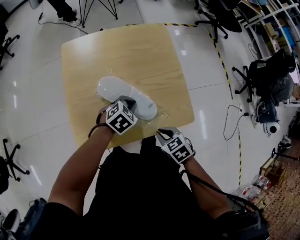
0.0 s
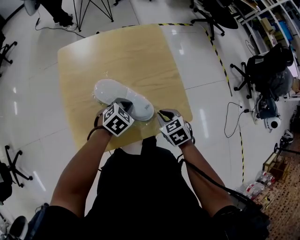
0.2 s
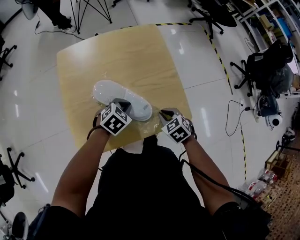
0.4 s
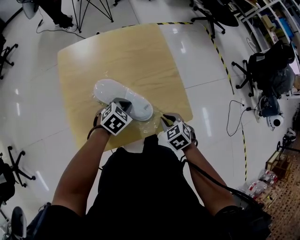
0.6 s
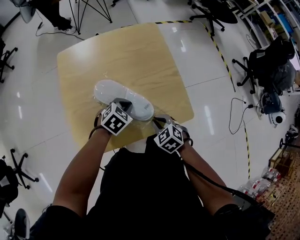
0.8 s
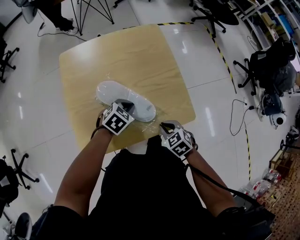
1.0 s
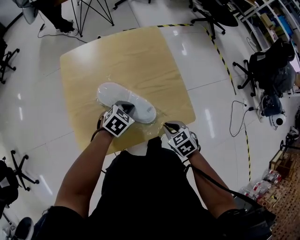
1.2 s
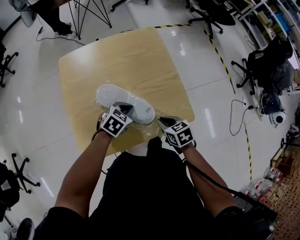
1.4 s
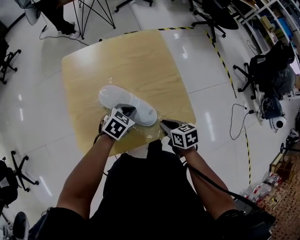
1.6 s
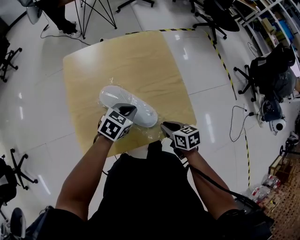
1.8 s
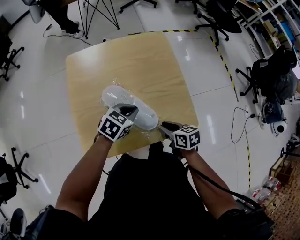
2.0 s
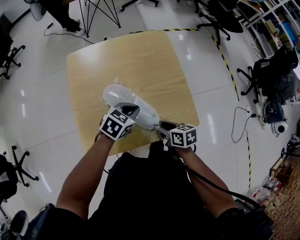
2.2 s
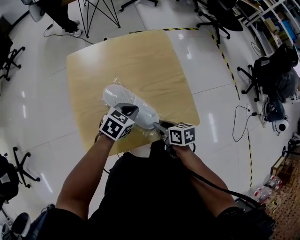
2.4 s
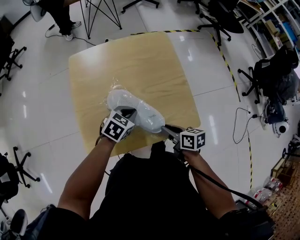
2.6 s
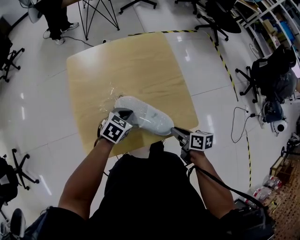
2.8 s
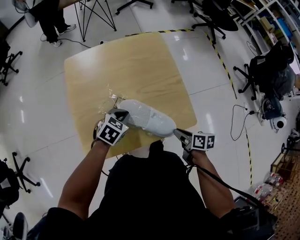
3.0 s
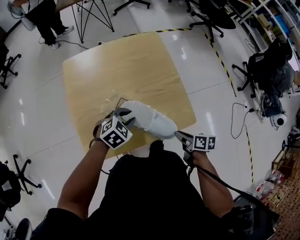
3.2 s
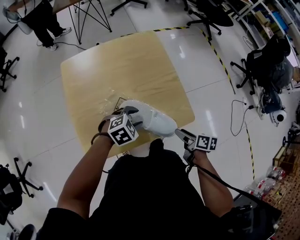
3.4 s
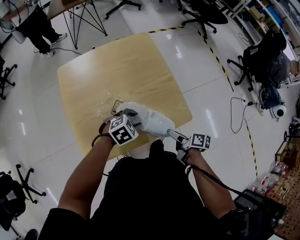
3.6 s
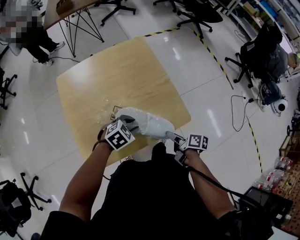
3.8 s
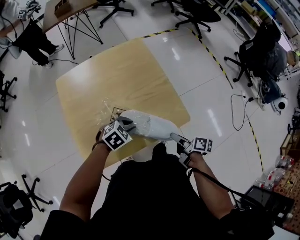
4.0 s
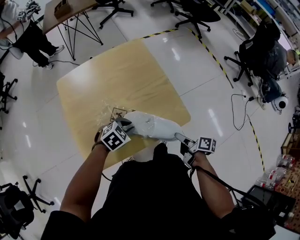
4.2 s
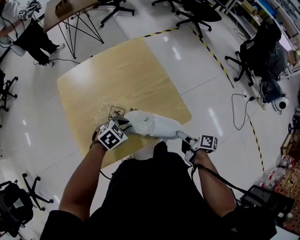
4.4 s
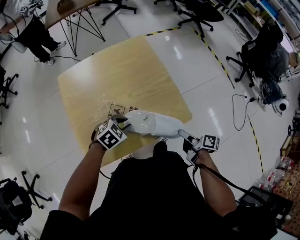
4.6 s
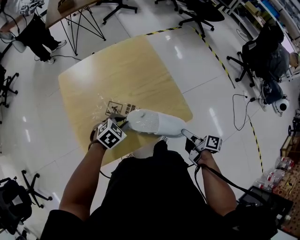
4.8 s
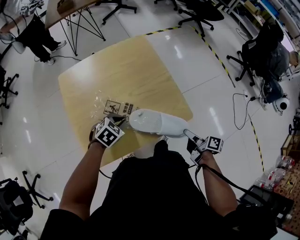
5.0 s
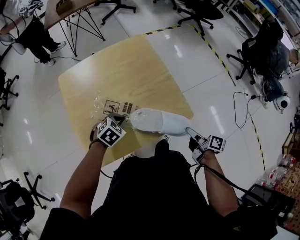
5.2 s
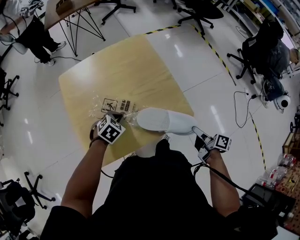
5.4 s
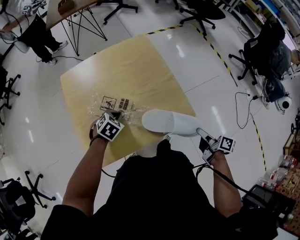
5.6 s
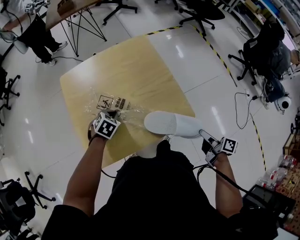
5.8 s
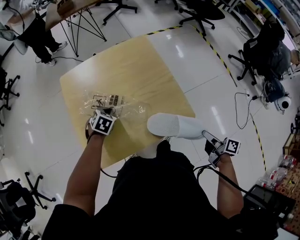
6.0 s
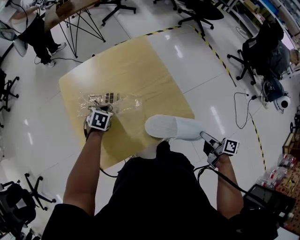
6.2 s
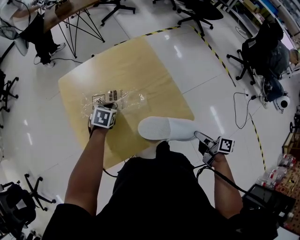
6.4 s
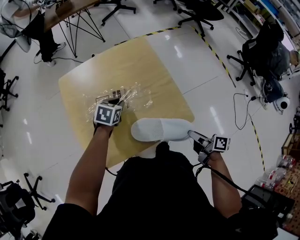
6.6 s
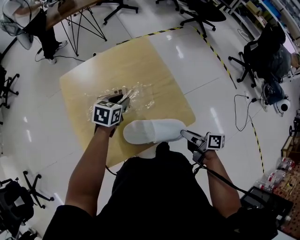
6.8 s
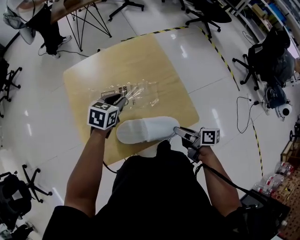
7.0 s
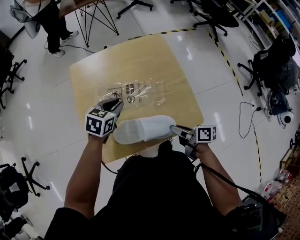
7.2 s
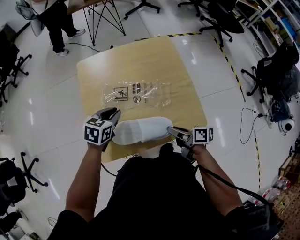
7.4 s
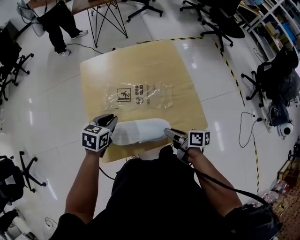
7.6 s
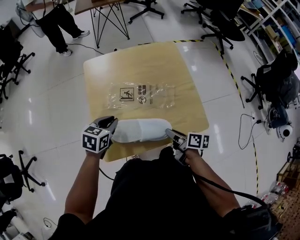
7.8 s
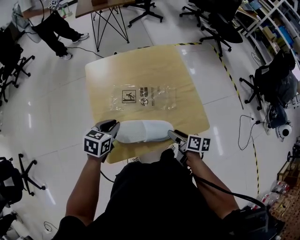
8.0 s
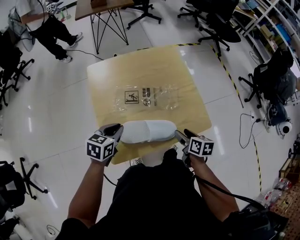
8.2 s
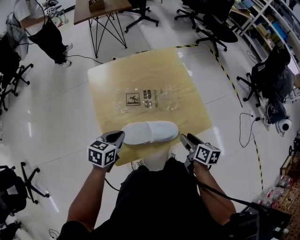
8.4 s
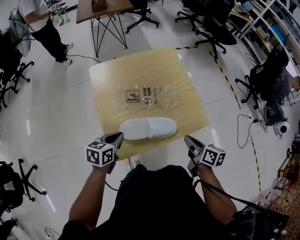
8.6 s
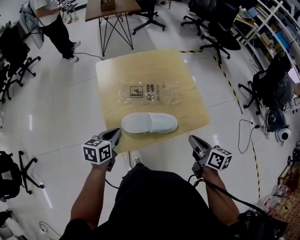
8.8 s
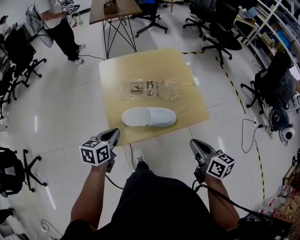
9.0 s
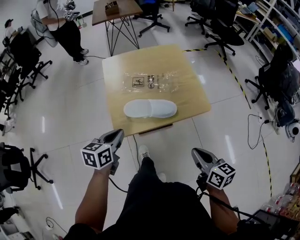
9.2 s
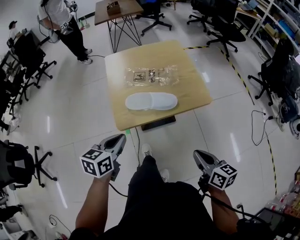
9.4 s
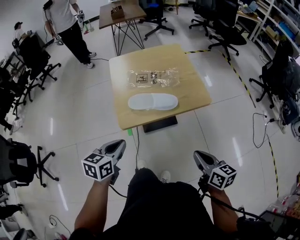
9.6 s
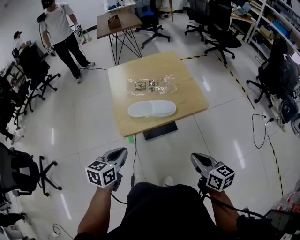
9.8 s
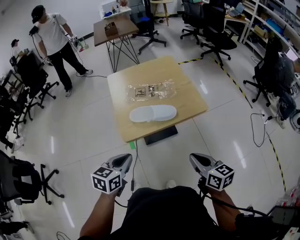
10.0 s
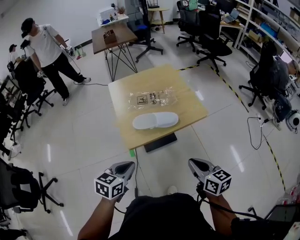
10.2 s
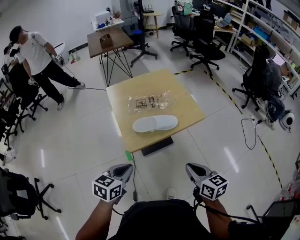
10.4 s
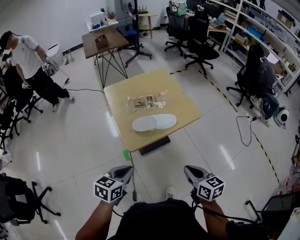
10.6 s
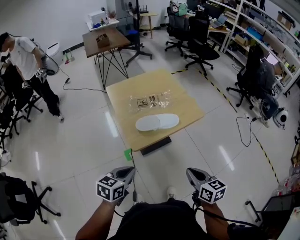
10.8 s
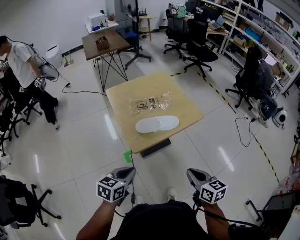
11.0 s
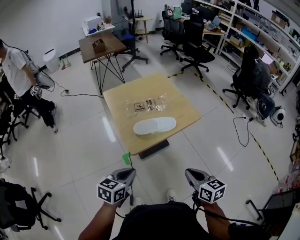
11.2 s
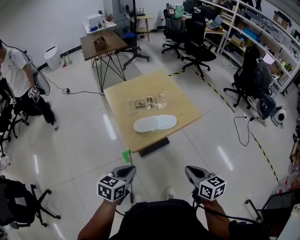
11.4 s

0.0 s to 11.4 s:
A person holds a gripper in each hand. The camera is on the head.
0.0 to 1.4 s: The right gripper travels forward by roughly 5 cm.
1.4 to 2.8 s: The right gripper changes its angle by about 30 degrees, and opens, then closes once more.
2.8 to 4.2 s: The two grippers go approximately 5 cm to the right. The left gripper rotates approximately 30 degrees, and opens, then closes once more. Meanwhile the right gripper swivels roughly 30 degrees, and opens and closes again.
4.2 to 5.6 s: The right gripper heads to the right, covering approximately 10 cm. Meanwhile the left gripper moves to the left, some 10 cm.
5.6 to 7.2 s: The right gripper is displaced to the left by some 20 cm, and rotates roughly 30 degrees. Meanwhile the left gripper is displaced upward by some 10 cm, and swivels approximately 30 degrees.
7.2 to 8.6 s: The left gripper heads backward and to the left, covering roughly 20 cm. Meanwhile the right gripper goes approximately 10 cm upward and backward, swivels approximately 30 degrees, and opens, then closes again.
8.6 to 10.0 s: The two grippers go approximately 25 cm backward and upward. The right gripper rotates roughly 20 degrees.
10.0 to 11.4 s: The left gripper travels to the left by roughly 5 cm. The right gripper travels to the left and backward by approximately 10 cm.

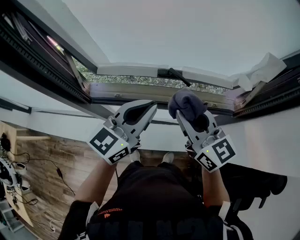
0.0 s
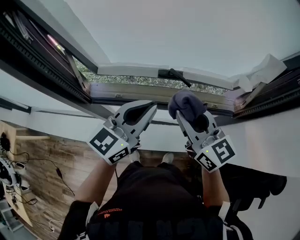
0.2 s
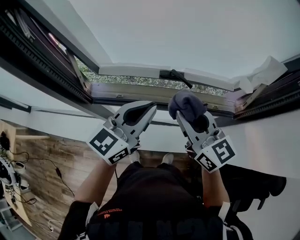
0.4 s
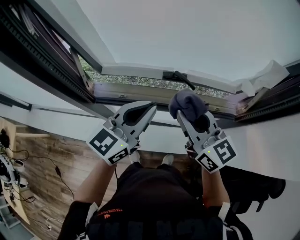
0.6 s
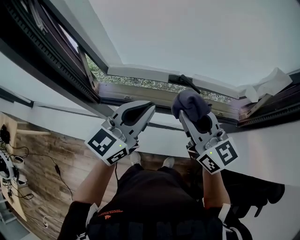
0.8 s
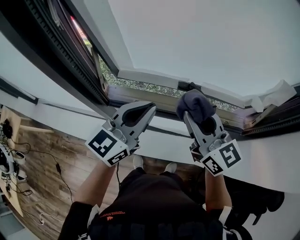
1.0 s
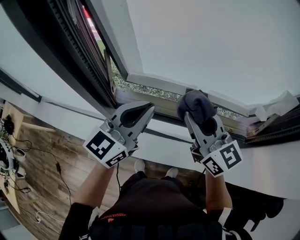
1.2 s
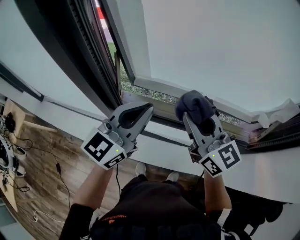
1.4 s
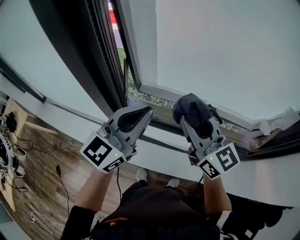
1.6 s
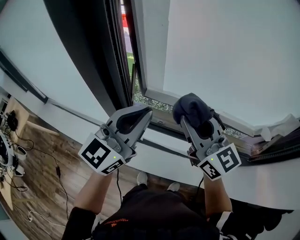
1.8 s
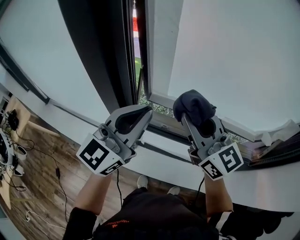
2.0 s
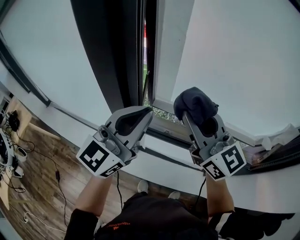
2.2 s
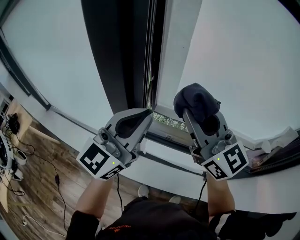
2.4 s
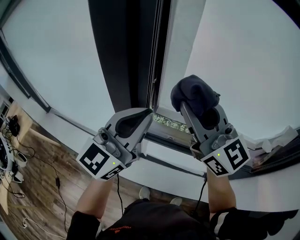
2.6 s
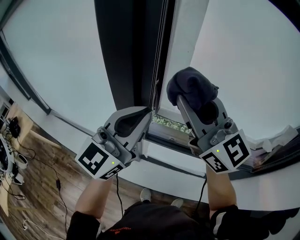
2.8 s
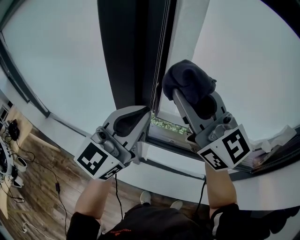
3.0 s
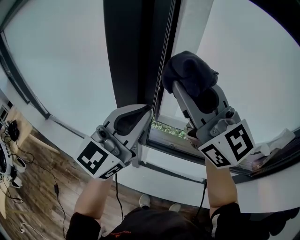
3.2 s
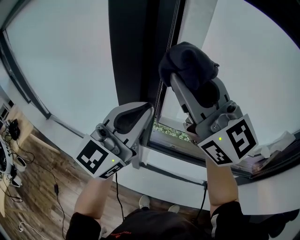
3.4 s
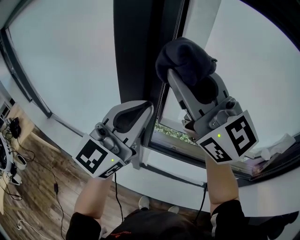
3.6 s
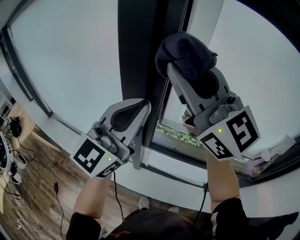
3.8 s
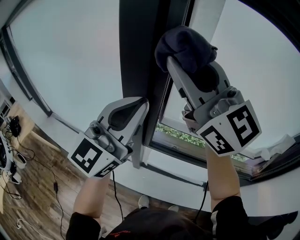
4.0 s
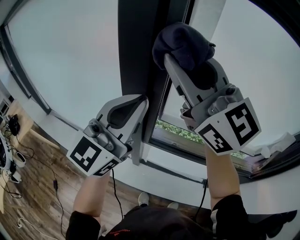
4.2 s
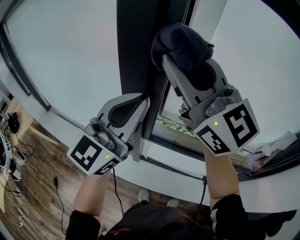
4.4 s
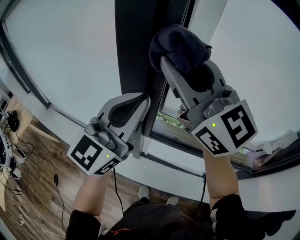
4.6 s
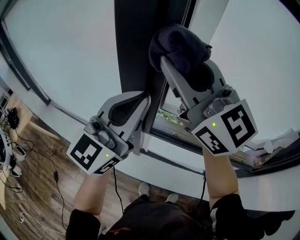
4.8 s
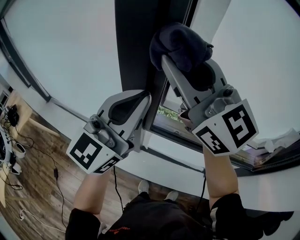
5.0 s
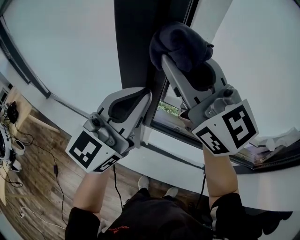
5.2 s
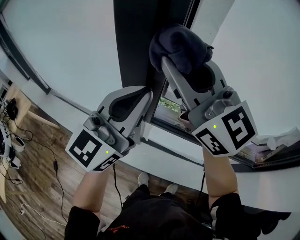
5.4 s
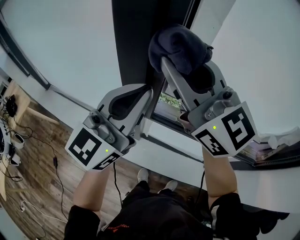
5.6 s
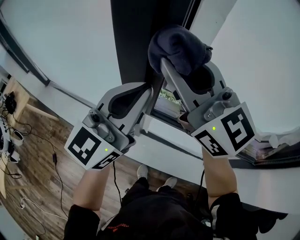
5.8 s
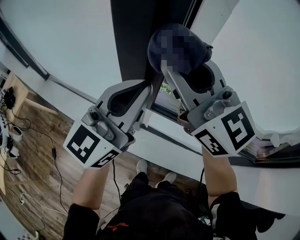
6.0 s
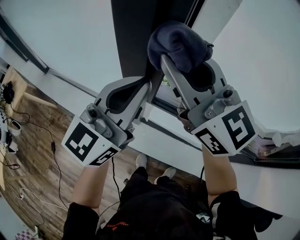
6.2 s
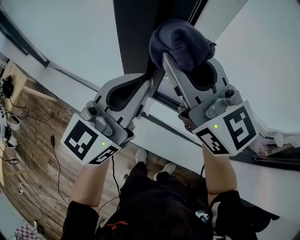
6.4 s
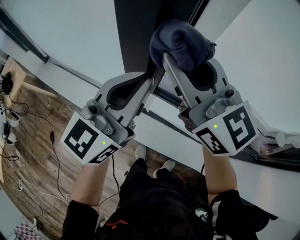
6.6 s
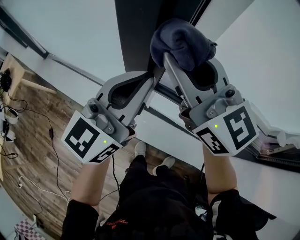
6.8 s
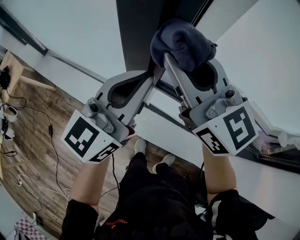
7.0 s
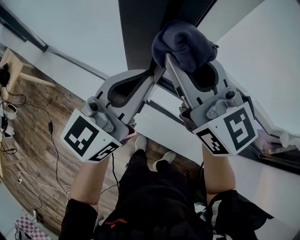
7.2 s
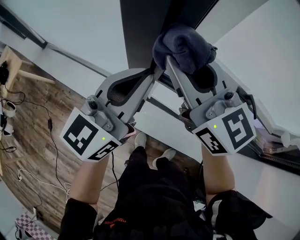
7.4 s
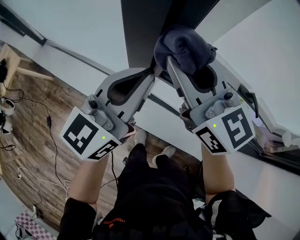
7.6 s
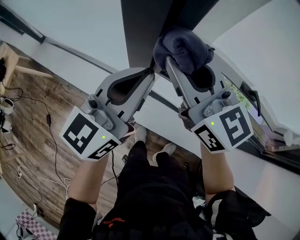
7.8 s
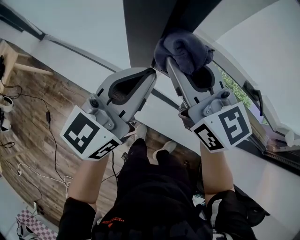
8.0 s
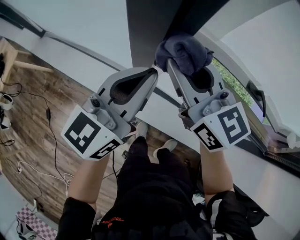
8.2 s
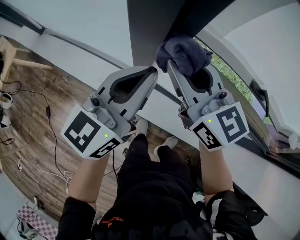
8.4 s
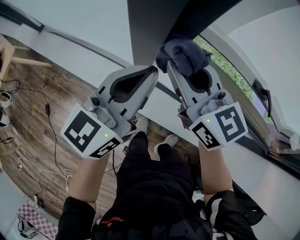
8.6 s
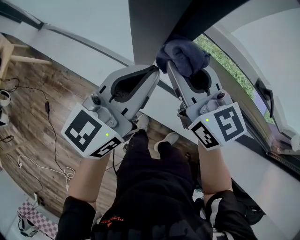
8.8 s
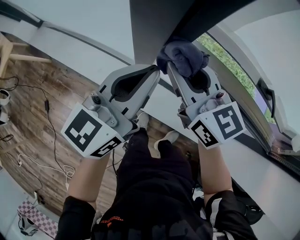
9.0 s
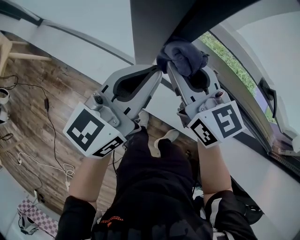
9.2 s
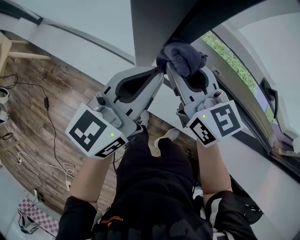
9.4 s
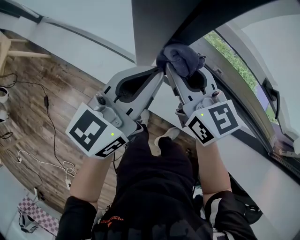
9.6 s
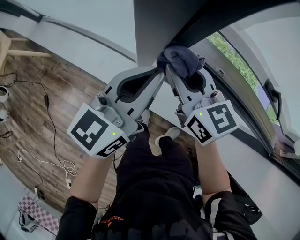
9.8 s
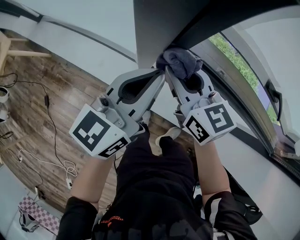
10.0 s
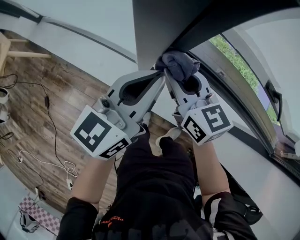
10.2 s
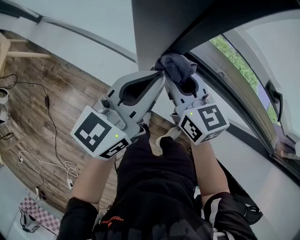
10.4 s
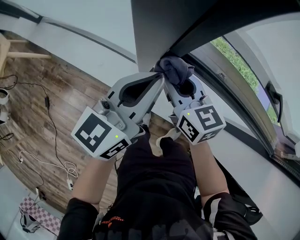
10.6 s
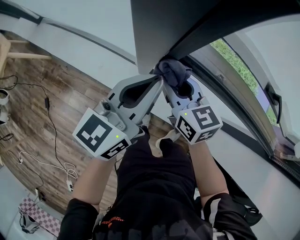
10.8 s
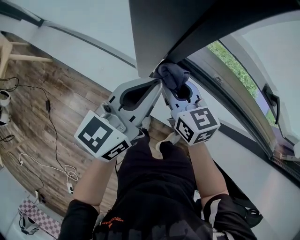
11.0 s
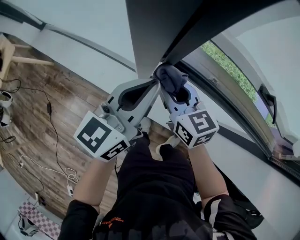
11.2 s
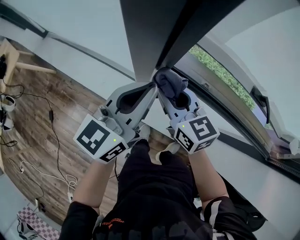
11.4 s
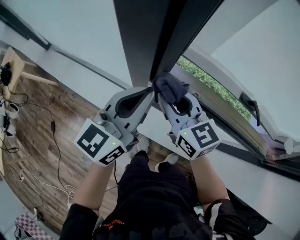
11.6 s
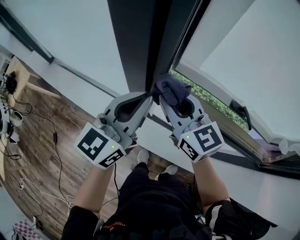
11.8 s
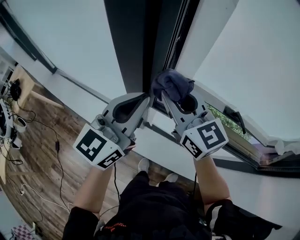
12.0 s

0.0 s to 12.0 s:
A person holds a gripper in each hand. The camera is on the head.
0.0 to 1.6 s: Both grippers move to the left, approximately 20 cm.
1.6 to 3.0 s: The right gripper travels upward and to the left by some 25 cm, and turns by roughly 20 degrees; the left gripper travels to the left and upward by approximately 15 cm.
3.0 to 4.4 s: The right gripper heads to the left and upward, covering some 10 cm.
4.4 to 6.0 s: The two grippers go approximately 10 cm downward.
6.0 to 7.6 s: Both grippers move downward, approximately 15 cm.
7.6 to 9.0 s: The right gripper travels downward by about 15 cm. Meanwhile the left gripper heads downward, covering roughly 10 cm.
9.0 to 10.4 s: The right gripper heads downward, covering some 10 cm. The left gripper heads downward, covering roughly 5 cm.
10.4 to 12.0 s: Both grippers move upward, some 25 cm. The left gripper rotates approximately 20 degrees. Meanwhile the right gripper rotates about 30 degrees.
